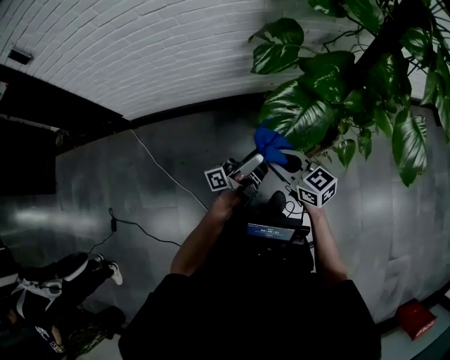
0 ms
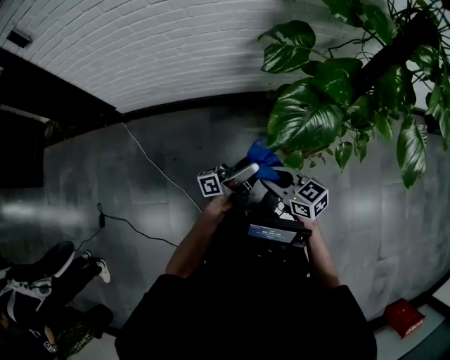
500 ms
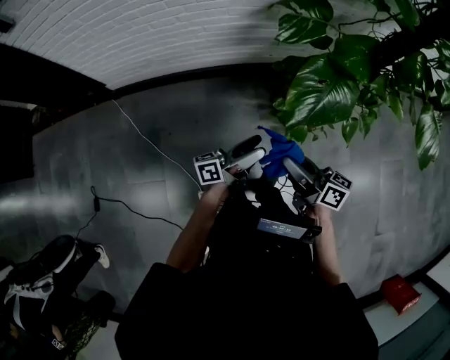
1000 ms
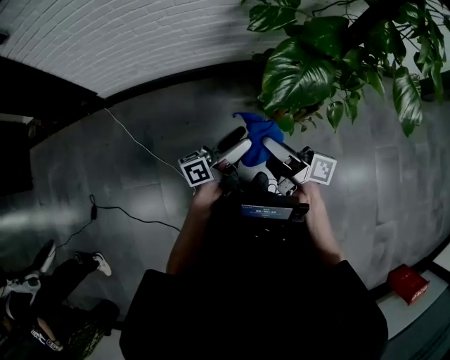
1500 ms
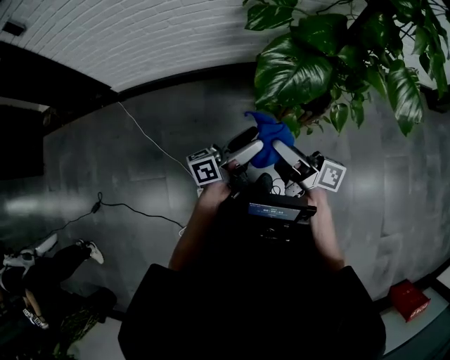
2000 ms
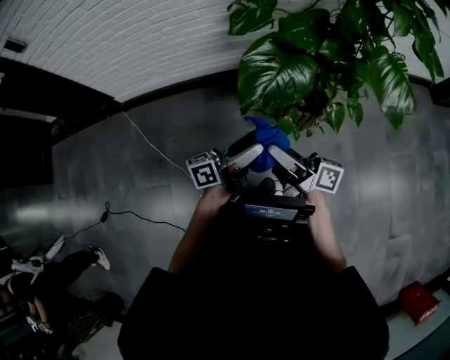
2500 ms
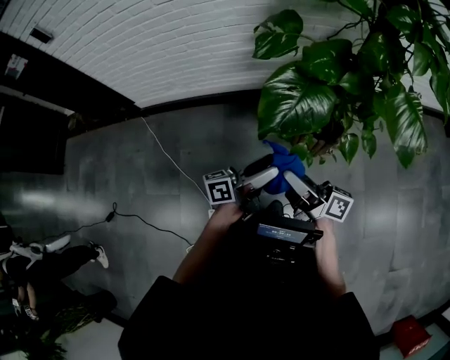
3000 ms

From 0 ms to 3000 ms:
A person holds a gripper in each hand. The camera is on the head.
From 0 ms to 1500 ms: The right gripper moves roughly 10 cm, and twists about 50 degrees clockwise, seen from behind.
From 1500 ms to 3000 ms: The right gripper moves roughly 15 cm.

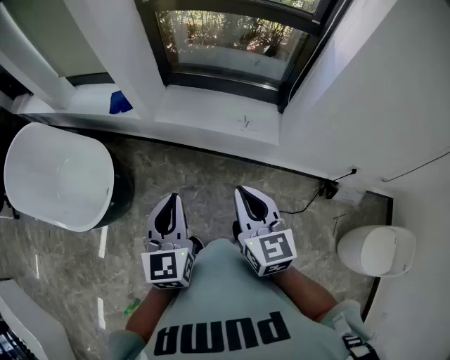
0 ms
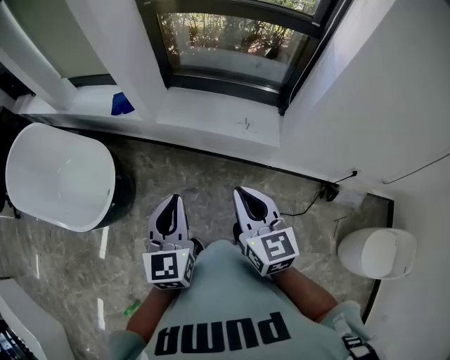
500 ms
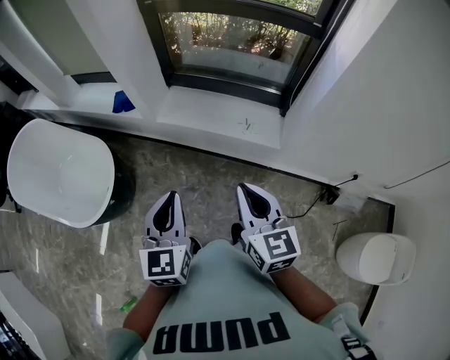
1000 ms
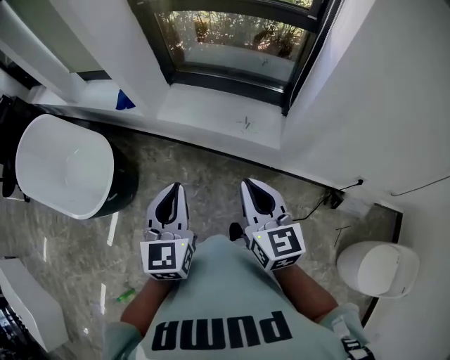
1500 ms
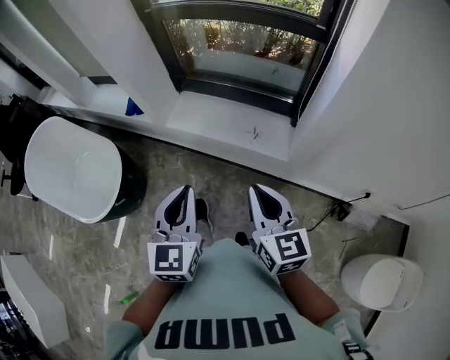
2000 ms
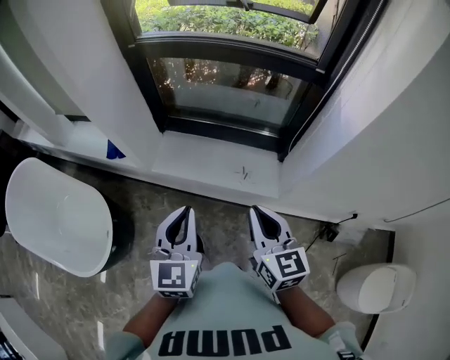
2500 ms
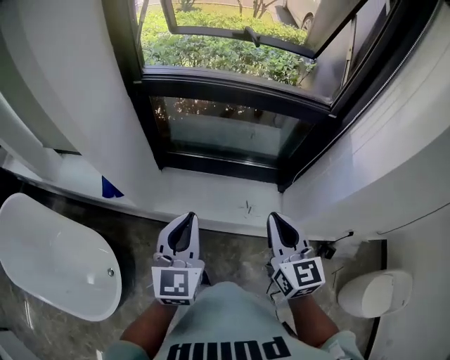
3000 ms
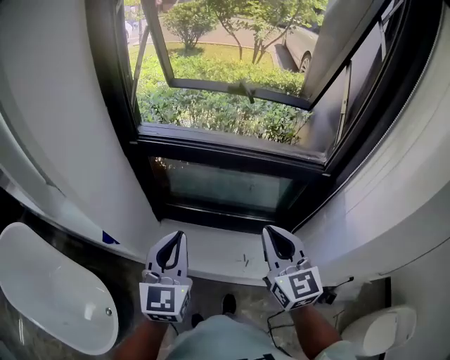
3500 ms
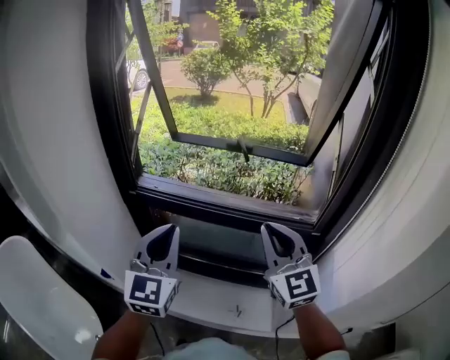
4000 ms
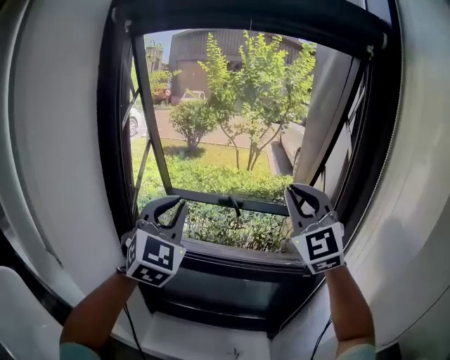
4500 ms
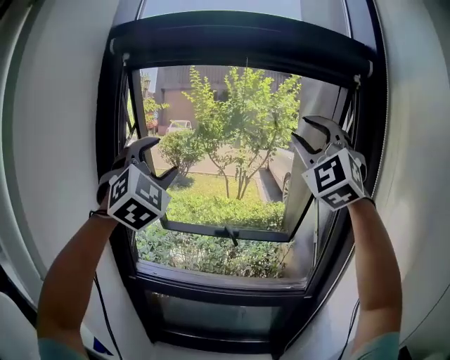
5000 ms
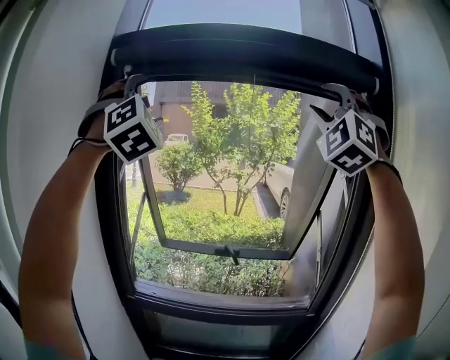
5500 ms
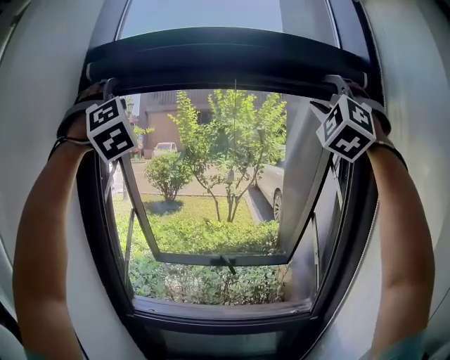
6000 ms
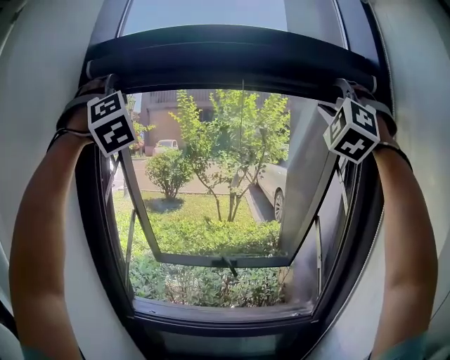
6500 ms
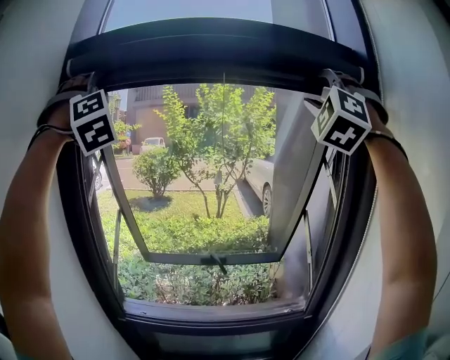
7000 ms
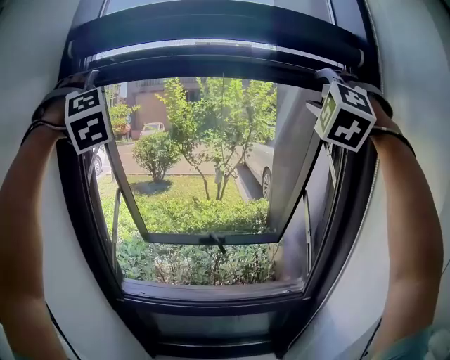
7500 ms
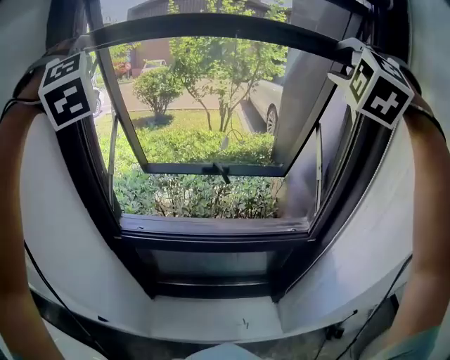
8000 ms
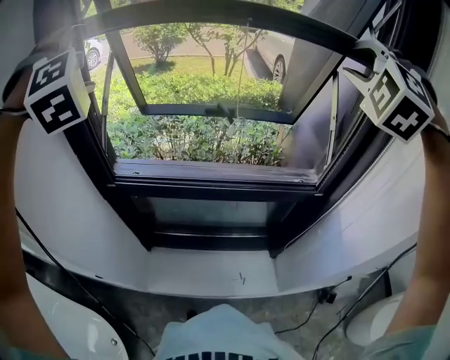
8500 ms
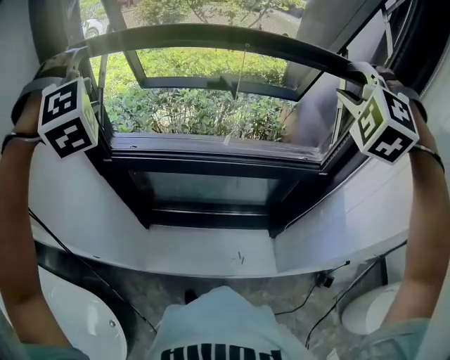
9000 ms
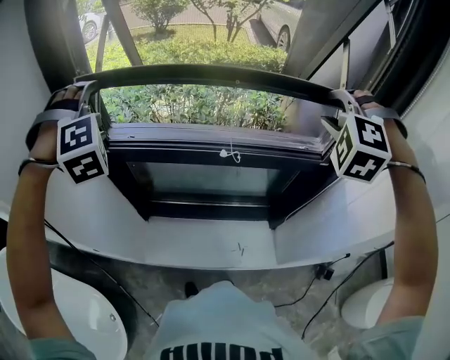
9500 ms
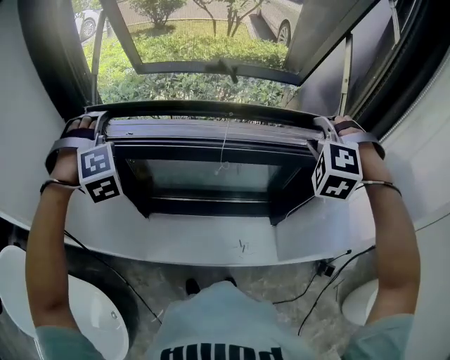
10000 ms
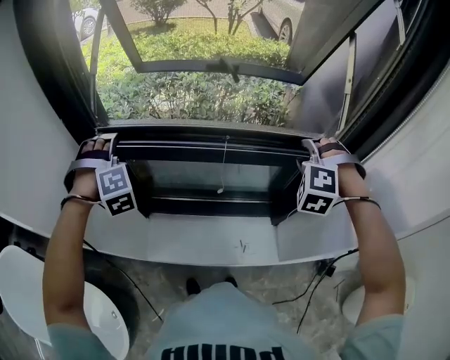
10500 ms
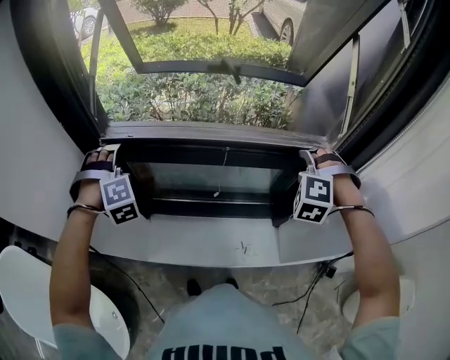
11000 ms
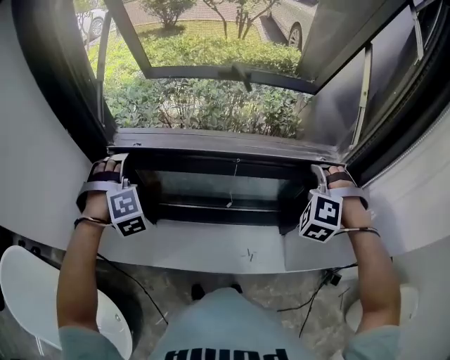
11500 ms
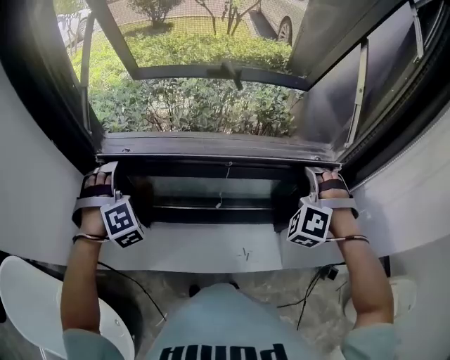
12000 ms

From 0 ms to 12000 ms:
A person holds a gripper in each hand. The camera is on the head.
From 0 ms to 2000 ms: The two grippers go approximately 15 cm to the right.
From 2000 ms to 4000 ms: The two grippers travel together, forward, some 50 cm. Both grippers travel together upward, about 25 cm. The right gripper rotates approximately 40 degrees. The left gripper changes its angle by approximately 30 degrees.
From 4000 ms to 6000 ms: The right gripper travels upward by about 60 cm, twists roughly 70 degrees counterclockwise, seen from behind, and opens its fingers, while the left gripper travels upward and forward by approximately 60 cm, rolls clockwise, seen from behind, by some 70 degrees, and opens up.
From 6000 ms to 8000 ms: The two grippers go about 20 cm downward. The left gripper swivels approximately 30 degrees, while the right gripper rotates roughly 30 degrees.
From 8000 ms to 10000 ms: Both grippers travel together downward, roughly 40 cm. The right gripper points its fingers roughly 30 degrees further downward. Meanwhile the left gripper angles its fingers downward, by some 30 degrees.
From 10000 ms to 12000 ms: The grippers both shift downward by approximately 10 cm.

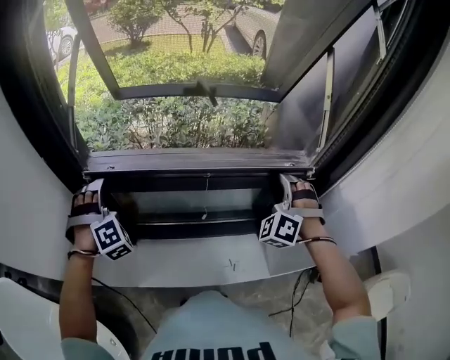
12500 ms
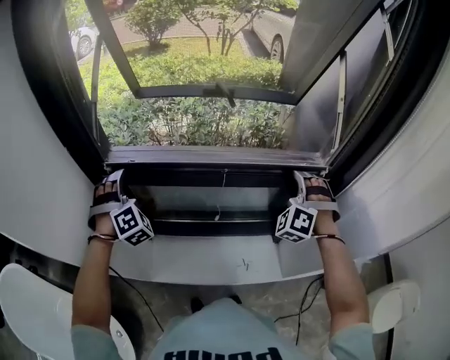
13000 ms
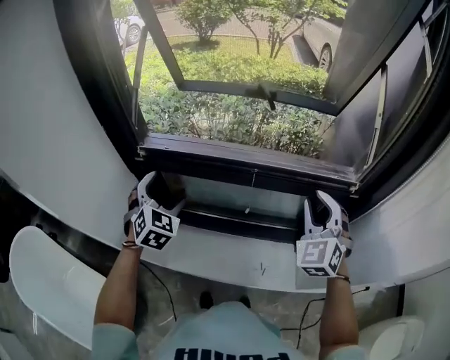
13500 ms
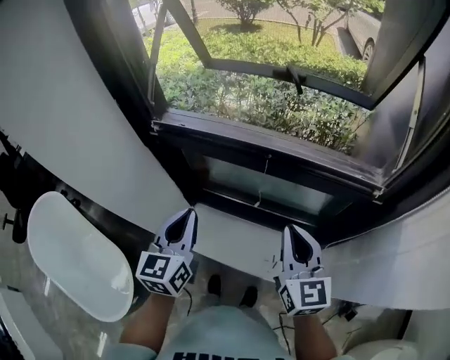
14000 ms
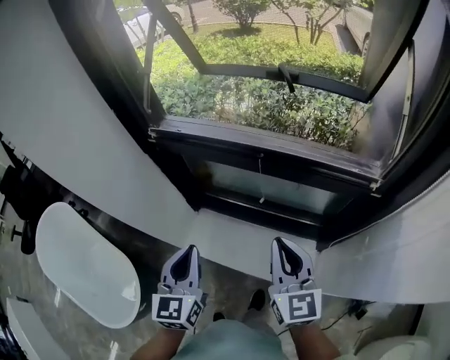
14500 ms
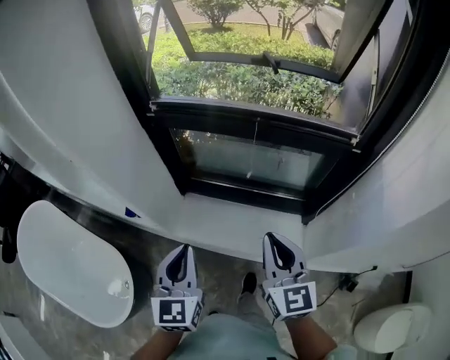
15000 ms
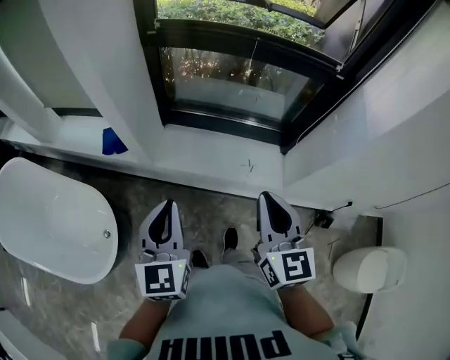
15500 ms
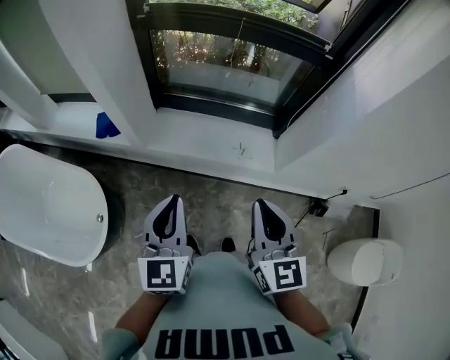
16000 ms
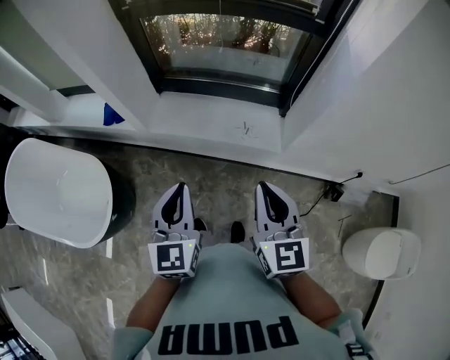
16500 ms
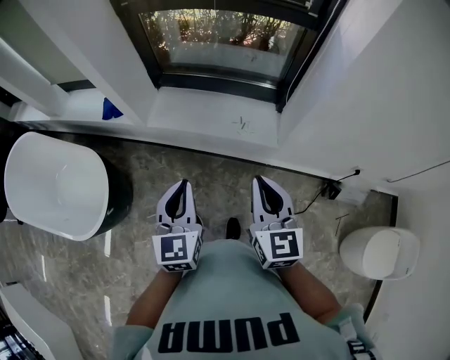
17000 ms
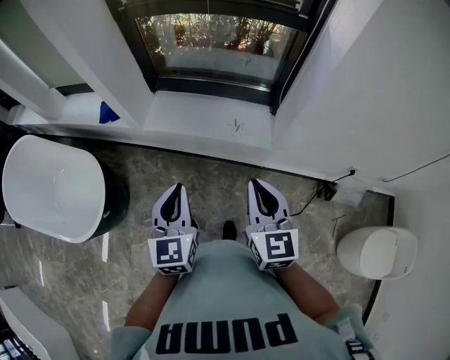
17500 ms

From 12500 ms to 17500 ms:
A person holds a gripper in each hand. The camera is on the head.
From 12500 ms to 15000 ms: The right gripper goes roughly 30 cm backward and to the left, rotates around the line of its fingers by approximately 80 degrees, clockwise from behind, and closes, while the left gripper heads backward, covering some 40 cm, rolls counterclockwise, seen from behind, by roughly 90 degrees, and closes its fingers.
From 15000 ms to 17500 ms: Both grippers move backward, approximately 30 cm.

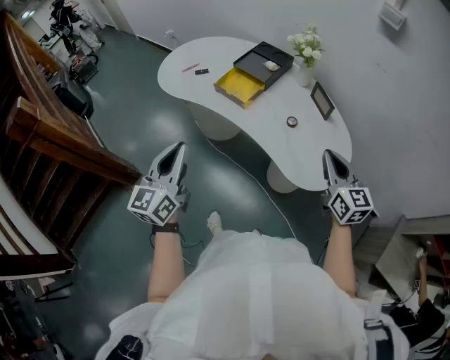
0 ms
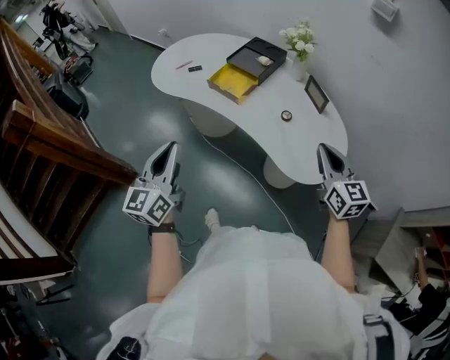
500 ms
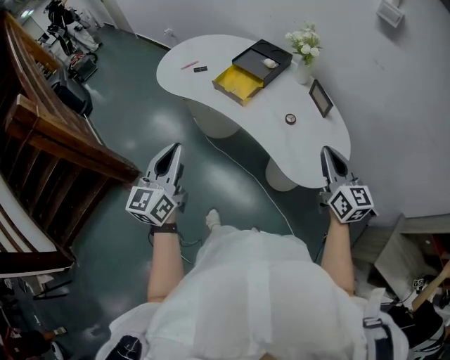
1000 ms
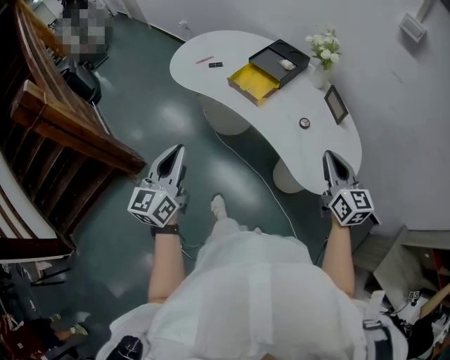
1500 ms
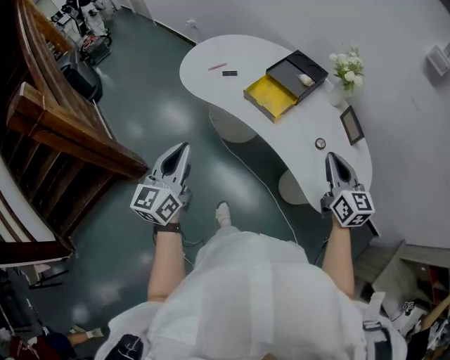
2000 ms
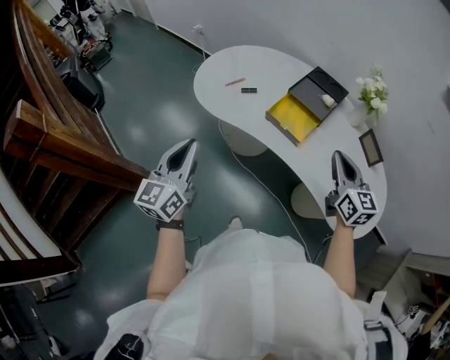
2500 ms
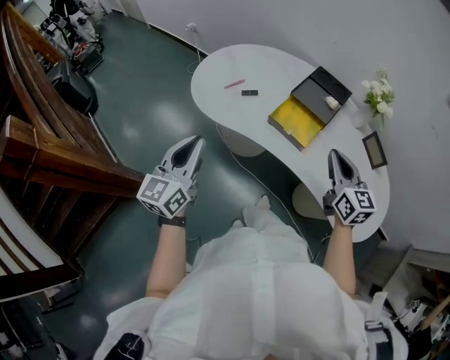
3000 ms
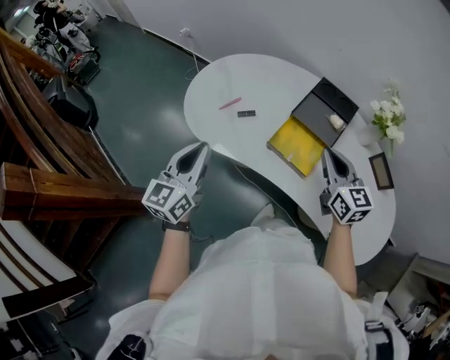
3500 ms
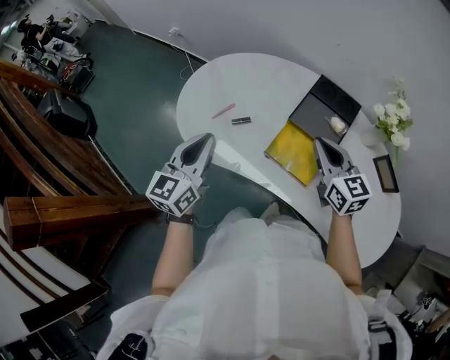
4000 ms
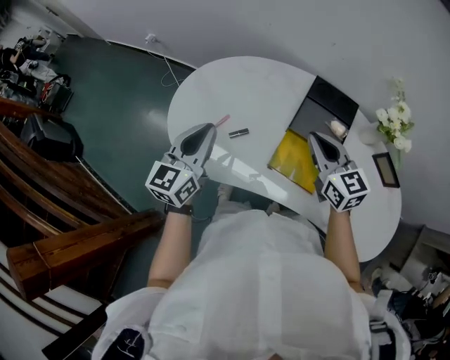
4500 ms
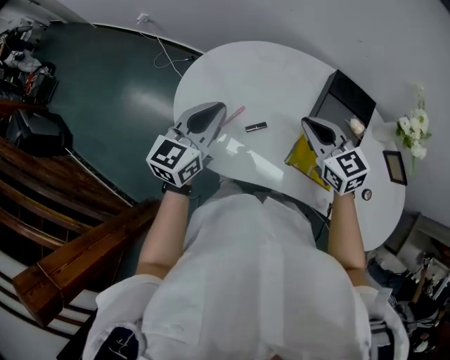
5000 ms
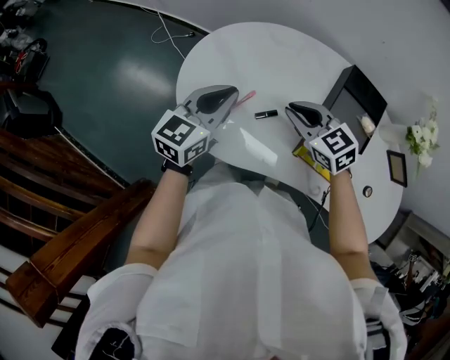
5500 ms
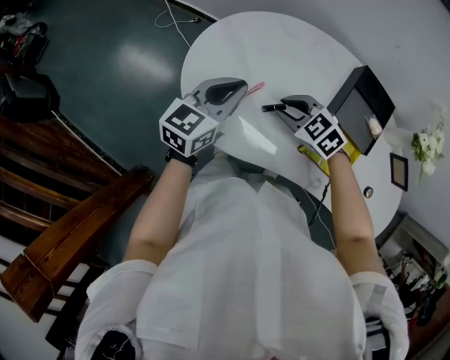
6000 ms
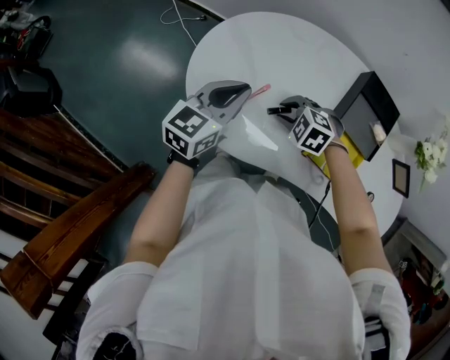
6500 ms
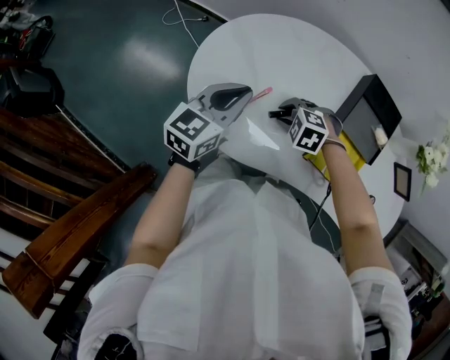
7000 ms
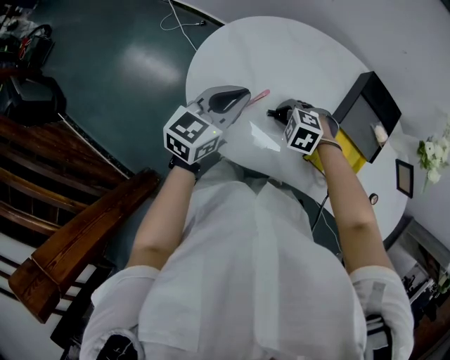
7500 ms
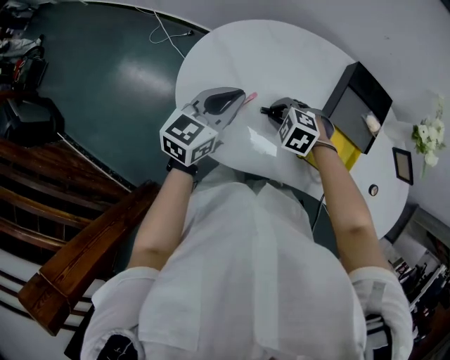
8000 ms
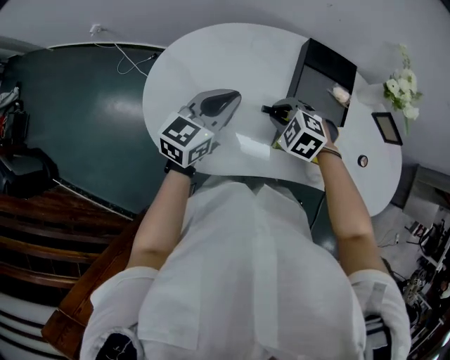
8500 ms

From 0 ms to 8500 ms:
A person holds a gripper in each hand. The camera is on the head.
From 0 ms to 2000 ms: The left gripper goes about 15 cm to the left and forward. The right gripper shifts approximately 15 cm forward and to the left.
From 2000 ms to 4000 ms: The left gripper goes roughly 40 cm forward. Meanwhile the right gripper is displaced forward and to the left by some 35 cm.
From 4000 ms to 6500 ms: The left gripper shifts approximately 20 cm forward, downward and to the left, and changes its angle by roughly 20 degrees. The right gripper travels to the left, downward and forward by approximately 35 cm, angles its fingers downward, by approximately 50 degrees, and opens.
From 6500 ms to 8500 ms: The right gripper moves about 10 cm, and rotates roughly 20 degrees. The left gripper changes place by about 10 cm.
